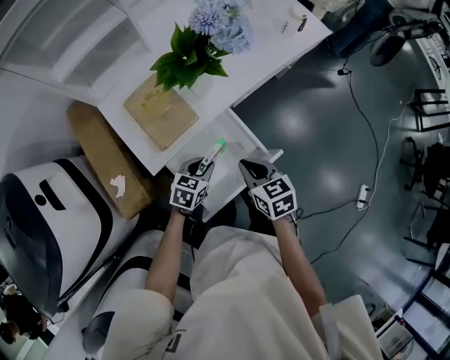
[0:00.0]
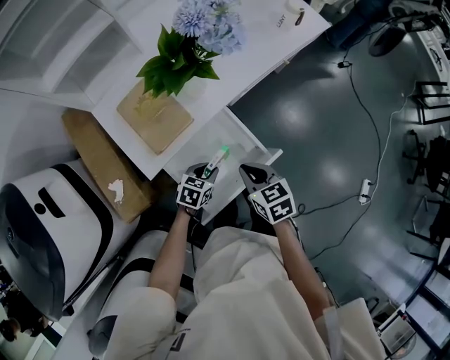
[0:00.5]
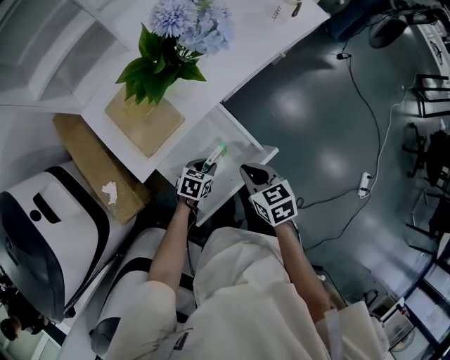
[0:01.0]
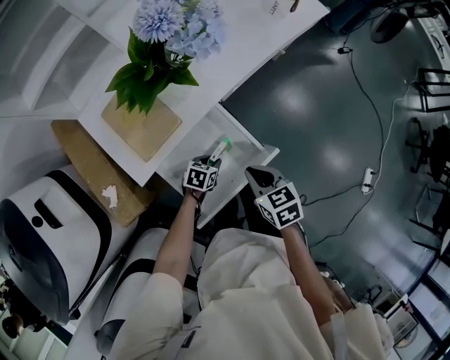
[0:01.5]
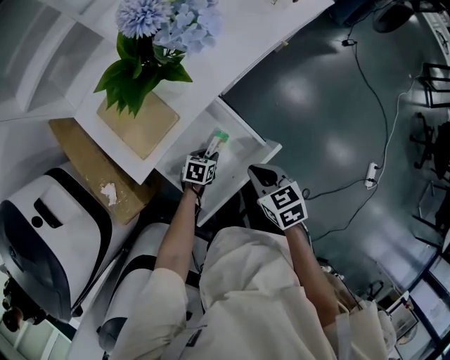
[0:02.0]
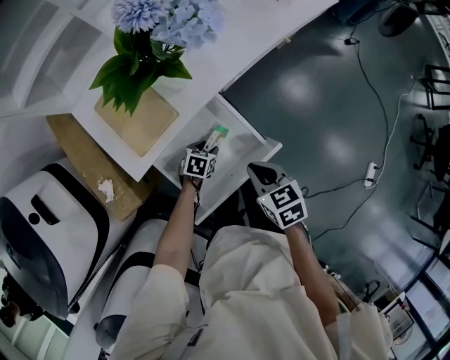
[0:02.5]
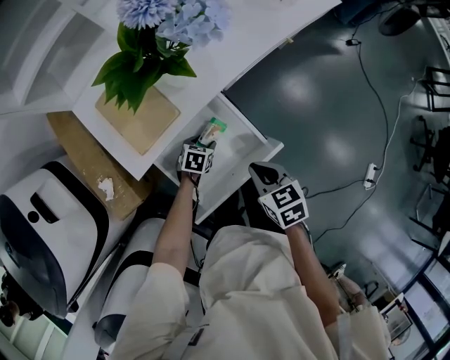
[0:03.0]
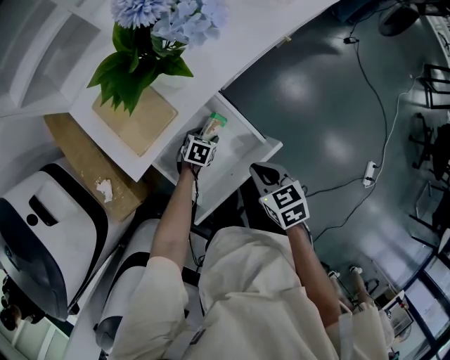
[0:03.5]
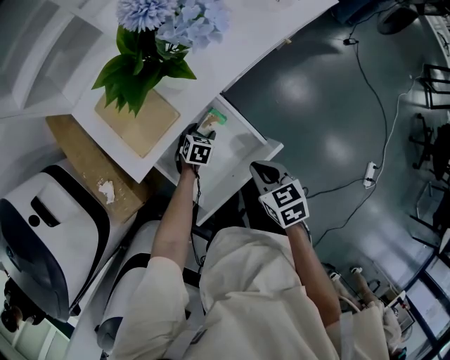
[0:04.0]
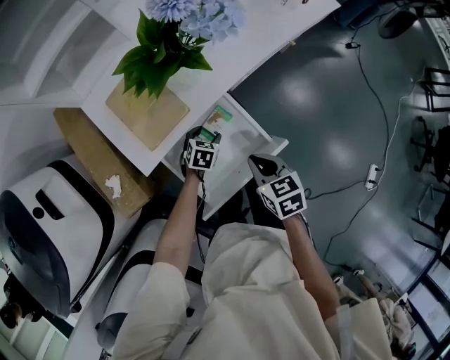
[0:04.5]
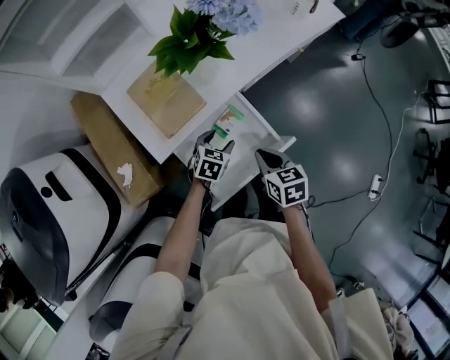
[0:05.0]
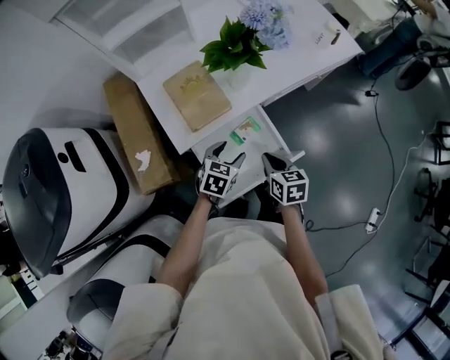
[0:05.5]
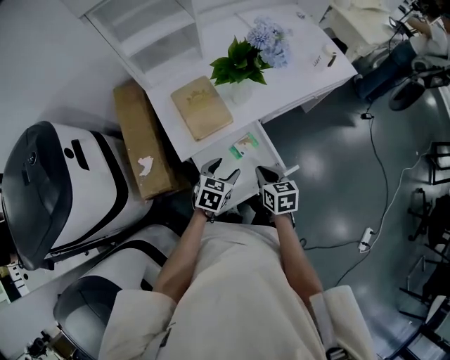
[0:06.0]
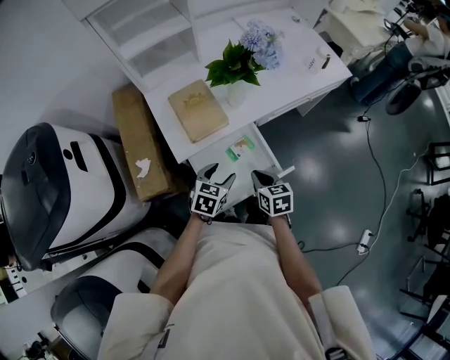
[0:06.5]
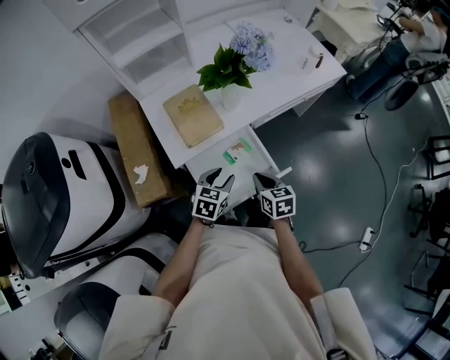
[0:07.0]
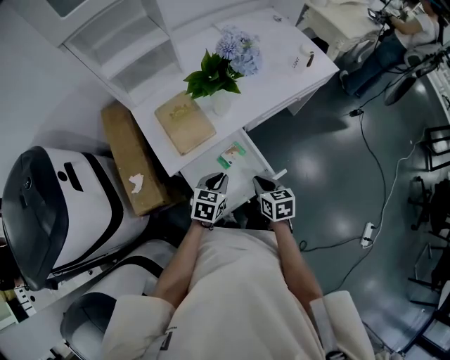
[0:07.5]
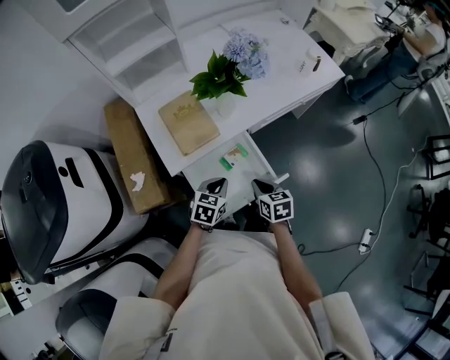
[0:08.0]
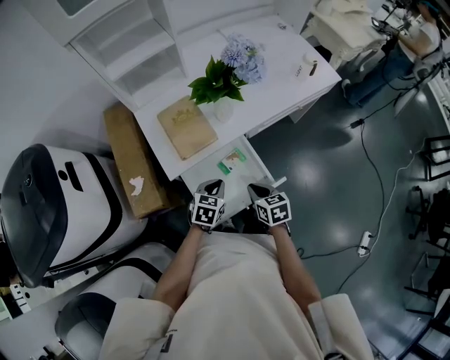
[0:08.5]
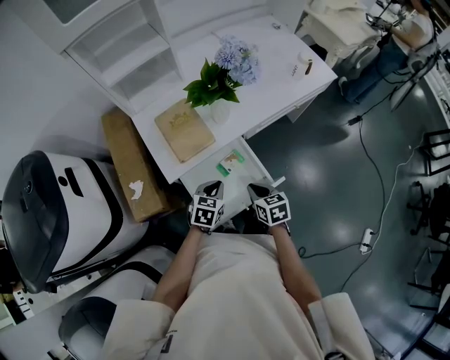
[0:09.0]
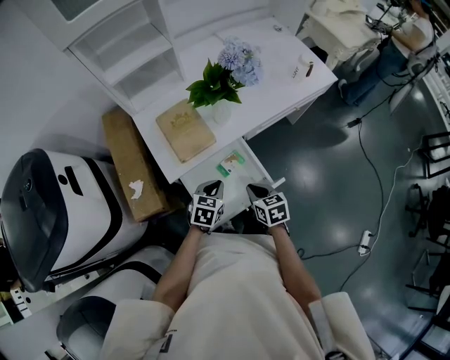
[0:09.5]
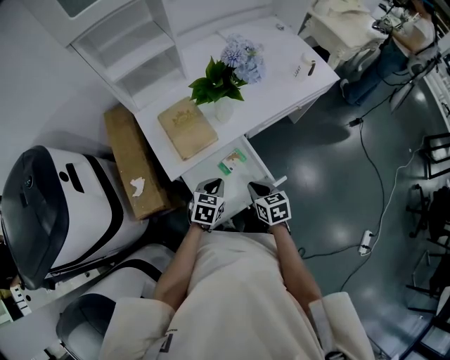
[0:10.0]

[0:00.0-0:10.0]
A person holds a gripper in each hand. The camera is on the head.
0:00.0 to 0:02.0: The right gripper heads to the right, covering about 5 cm; the left gripper is displaced downward by approximately 15 cm, and changes its angle by roughly 20 degrees.
0:02.0 to 0:04.0: The left gripper moves forward, roughly 10 cm, and opens its fingers.
0:04.0 to 0:06.0: The left gripper heads upward and backward, covering approximately 25 cm, and rotates approximately 20 degrees. The right gripper heads to the left, covering some 5 cm.
0:06.0 to 0:08.0: The left gripper closes.
0:08.0 to 0:10.0: There are only small adjustments of the grippers.

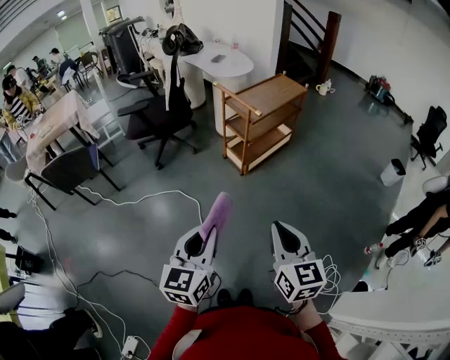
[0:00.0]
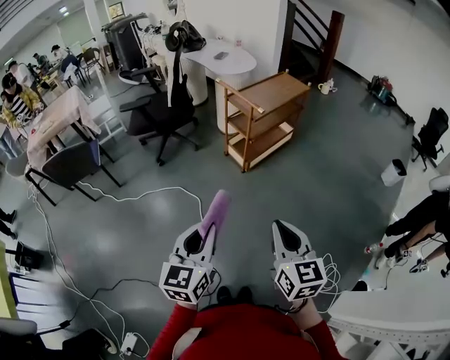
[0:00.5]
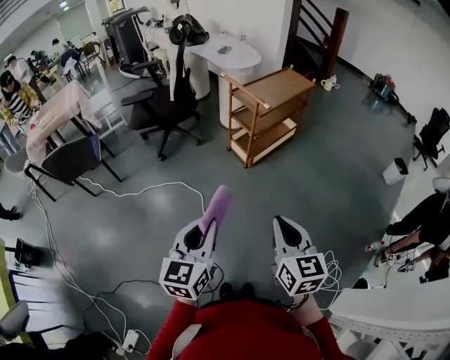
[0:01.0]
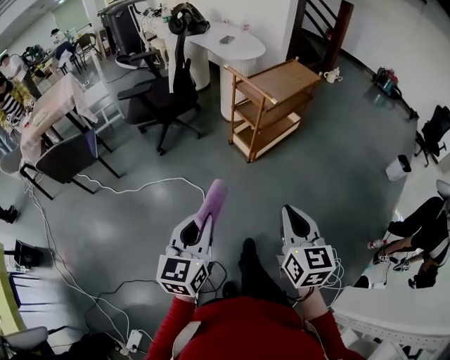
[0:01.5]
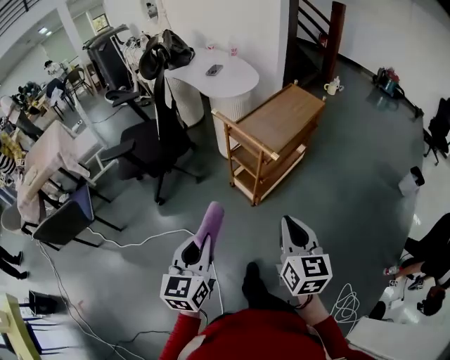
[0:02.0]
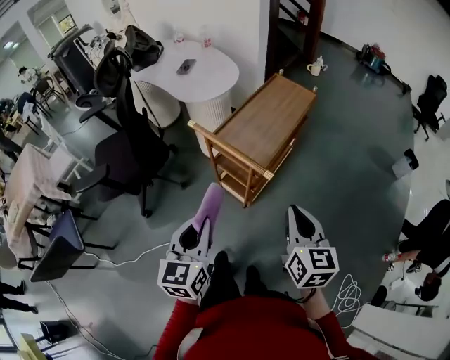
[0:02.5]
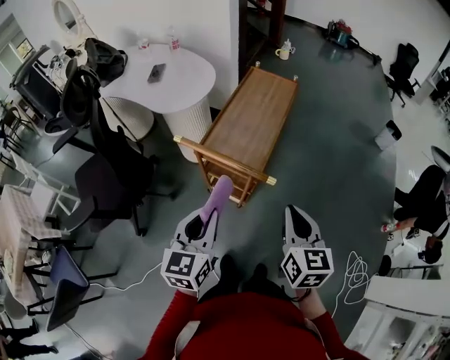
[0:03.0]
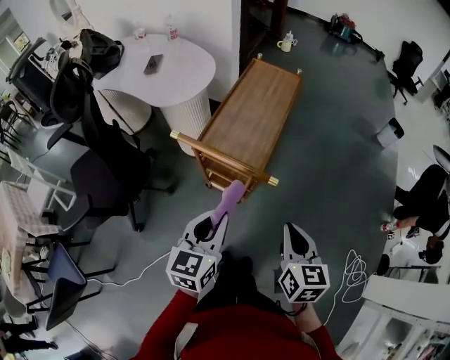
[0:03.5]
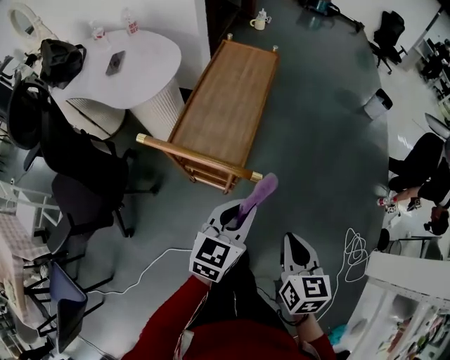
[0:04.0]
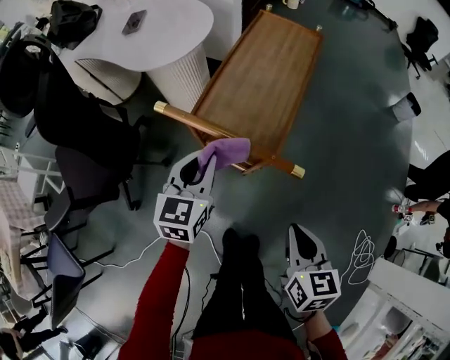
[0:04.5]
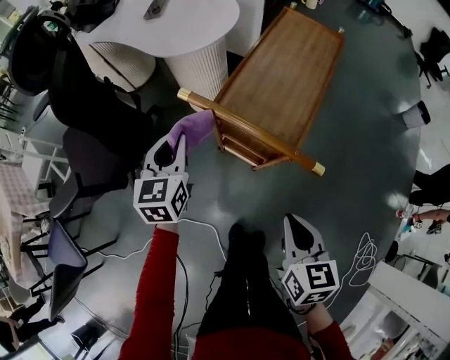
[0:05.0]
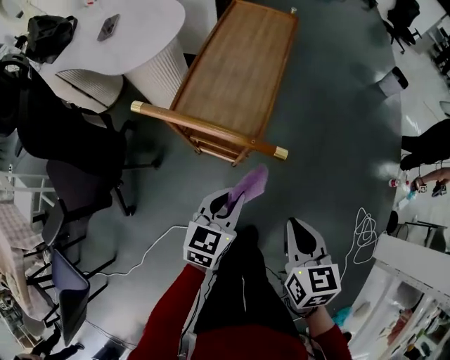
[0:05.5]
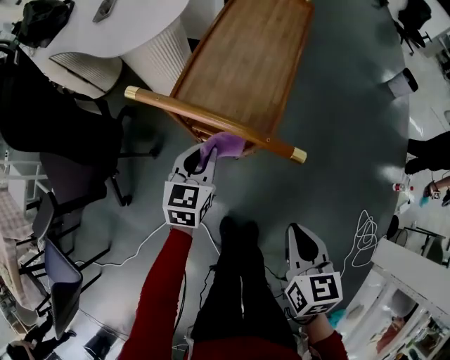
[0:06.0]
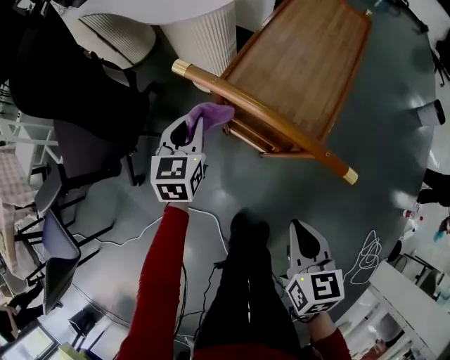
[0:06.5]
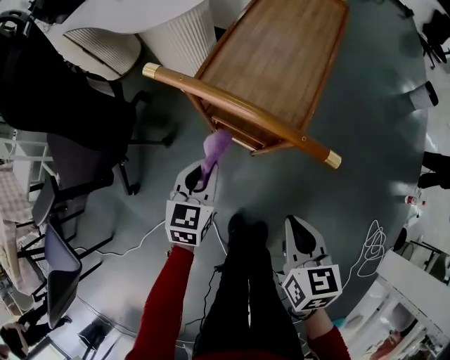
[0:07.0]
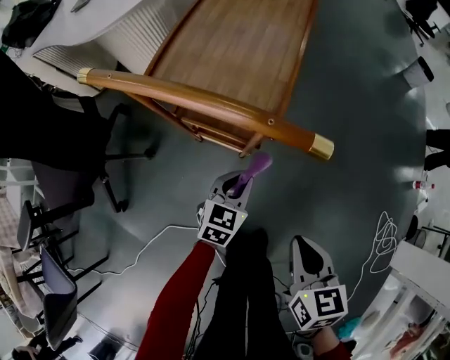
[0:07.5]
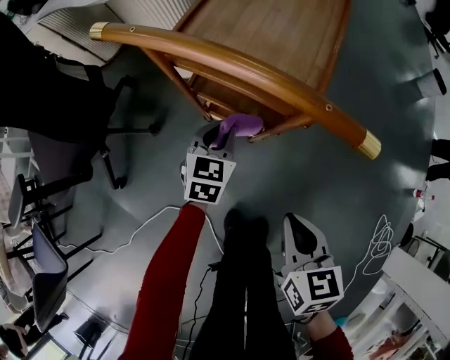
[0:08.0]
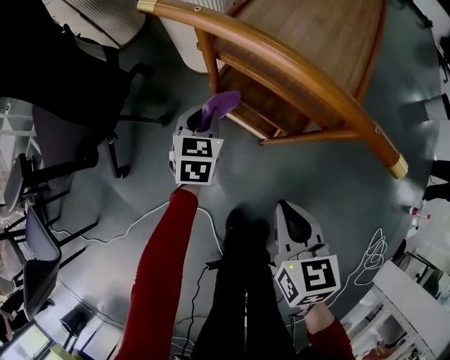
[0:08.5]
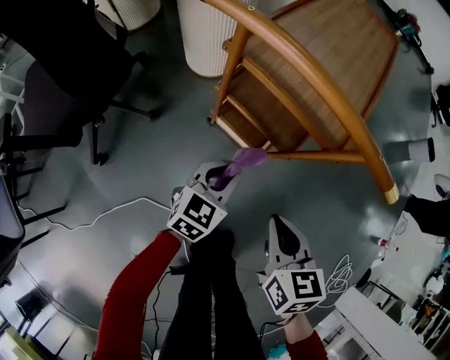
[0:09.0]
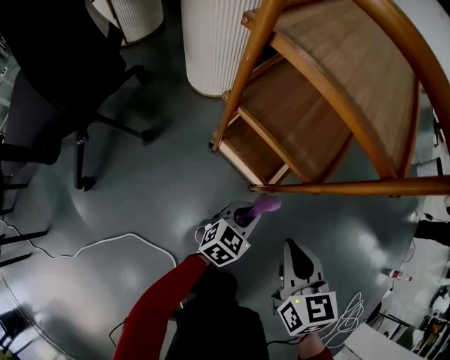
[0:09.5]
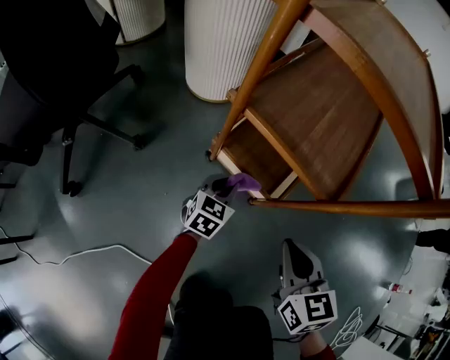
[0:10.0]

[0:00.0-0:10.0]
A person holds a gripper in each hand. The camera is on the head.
0:00.0 to 0:02.0: The two grippers go approximately 25 cm forward.
0:02.0 to 0:04.0: The left gripper changes place by roughly 30 cm, and changes its angle by about 50 degrees; the right gripper goes some 10 cm downward, and rotates roughly 40 degrees.
0:04.0 to 0:06.0: The left gripper ends up some 20 cm from where it was, while the right gripper moves downward, approximately 5 cm.
0:06.0 to 0:08.0: The left gripper moves left and right over about 20 cm, changing direction 2 times, while the right gripper moves downward, some 10 cm.
0:08.0 to 0:10.0: The right gripper travels downward and forward by some 20 cm, and swivels approximately 20 degrees. Meanwhile the left gripper is displaced downward by roughly 25 cm.

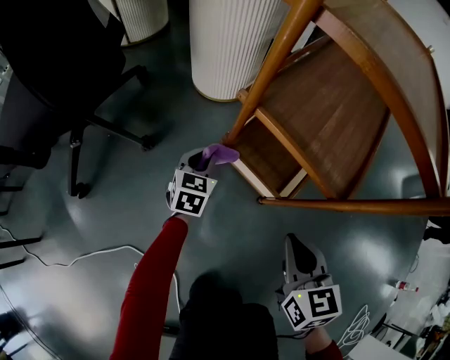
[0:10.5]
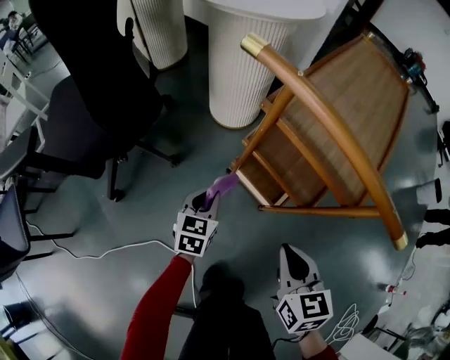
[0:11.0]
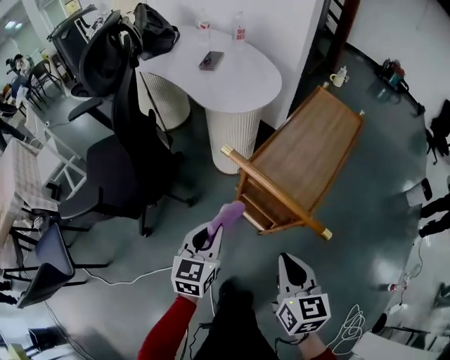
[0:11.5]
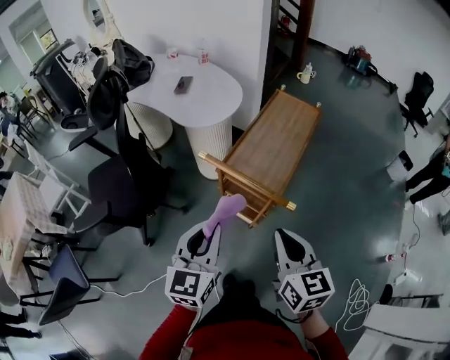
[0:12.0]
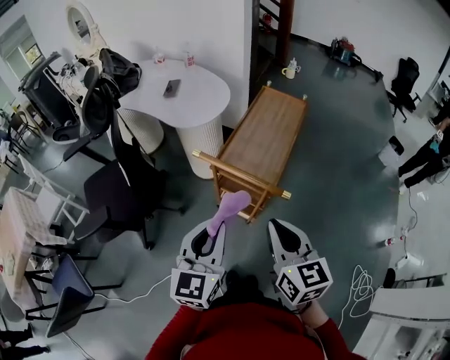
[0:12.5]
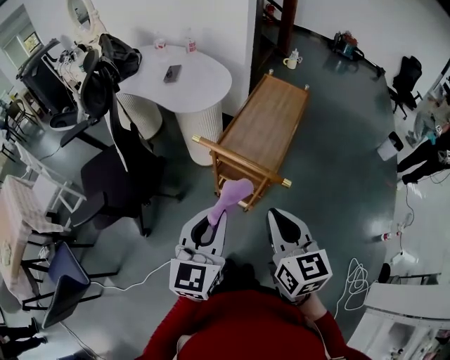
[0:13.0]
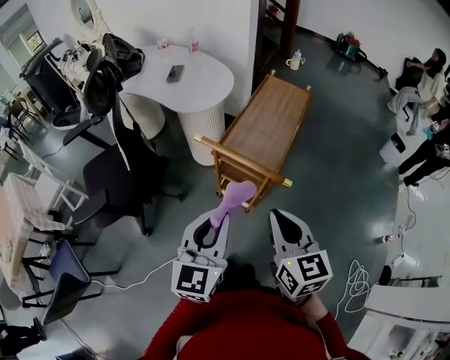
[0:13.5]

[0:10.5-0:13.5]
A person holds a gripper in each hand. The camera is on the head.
0:10.5 to 0:12.0: The grippers both shift upward by roughly 50 cm. The left gripper changes its angle by roughly 20 degrees.
0:12.0 to 0:13.5: The left gripper ends up about 5 cm from where it was.

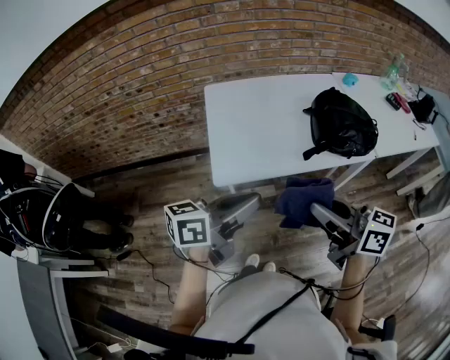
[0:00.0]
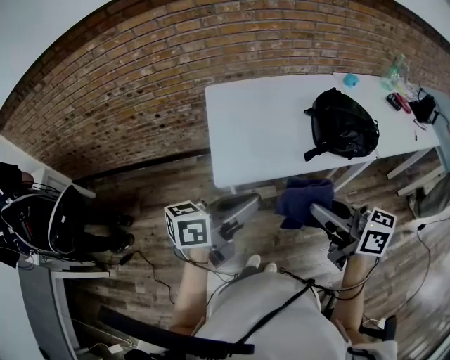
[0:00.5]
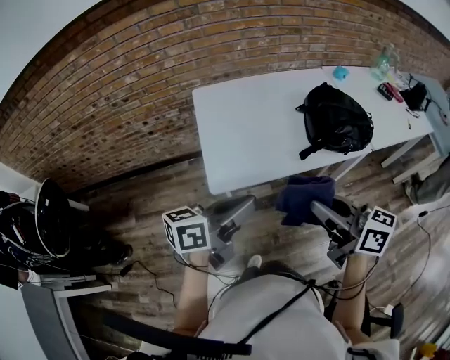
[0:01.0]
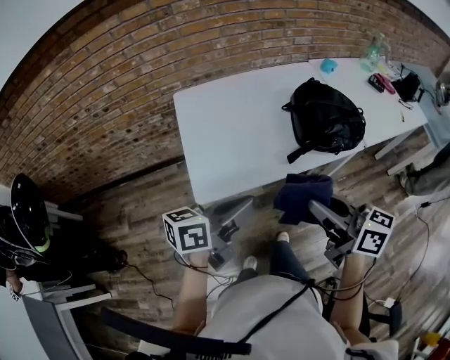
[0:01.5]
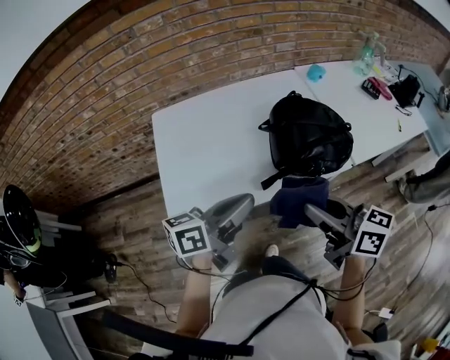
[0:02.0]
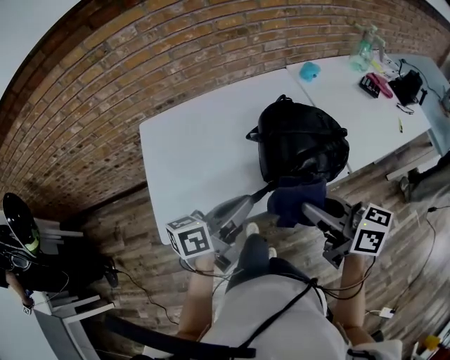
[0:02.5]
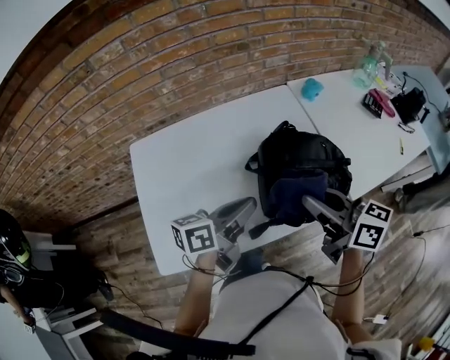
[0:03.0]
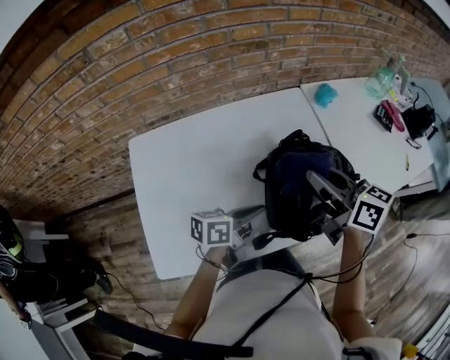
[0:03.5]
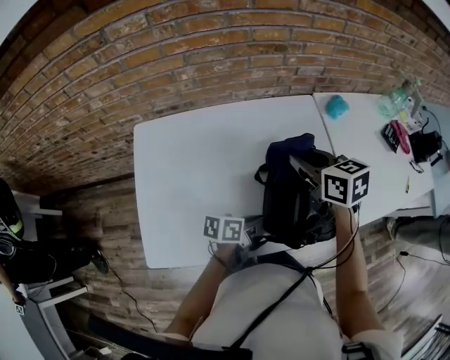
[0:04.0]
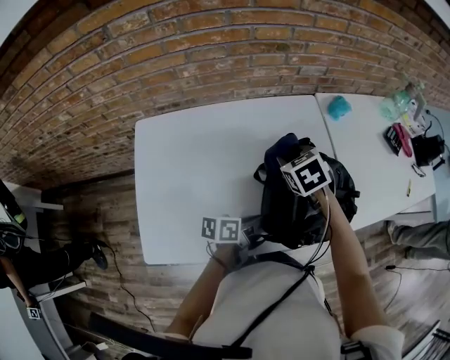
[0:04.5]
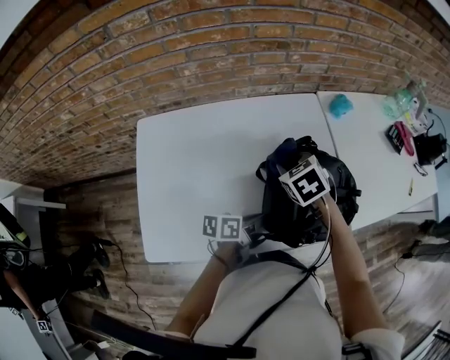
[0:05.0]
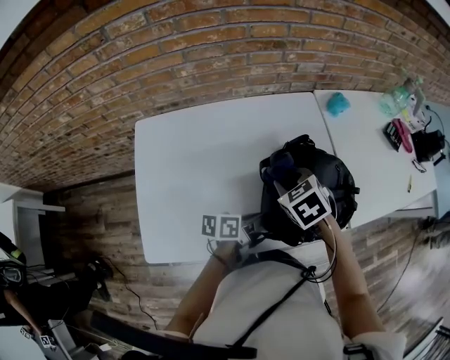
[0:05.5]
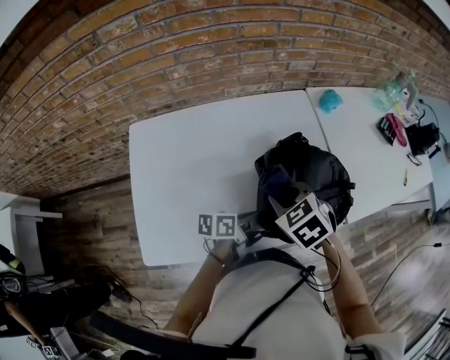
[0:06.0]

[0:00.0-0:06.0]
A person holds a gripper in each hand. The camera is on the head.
0:00.0 to 0:02.0: The two grippers go approximately 20 cm forward and to the right.
0:02.0 to 0:04.0: The right gripper travels forward by roughly 35 cm, and rotates roughly 30 degrees, while the left gripper travels downward and forward by roughly 25 cm, and turns by roughly 30 degrees.
0:04.0 to 0:06.0: The right gripper heads backward and downward, covering about 15 cm, and rotates some 30 degrees.
